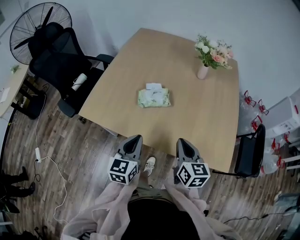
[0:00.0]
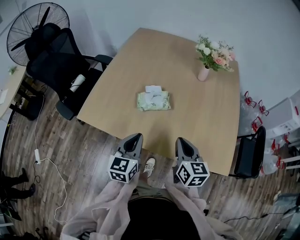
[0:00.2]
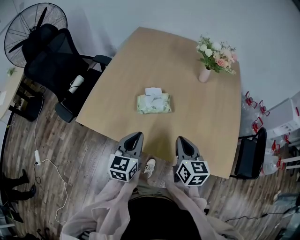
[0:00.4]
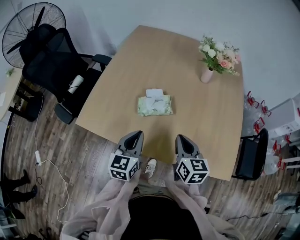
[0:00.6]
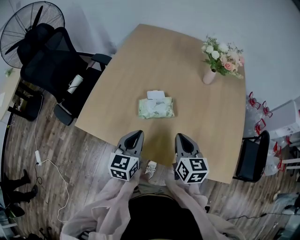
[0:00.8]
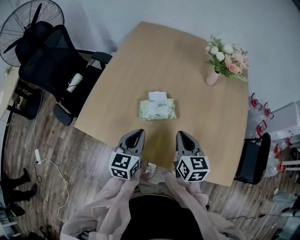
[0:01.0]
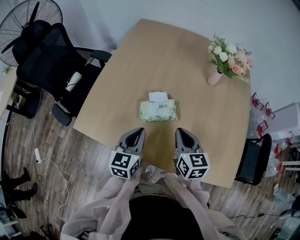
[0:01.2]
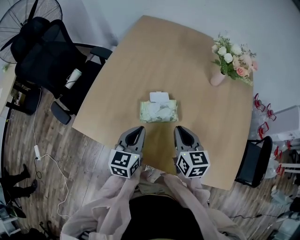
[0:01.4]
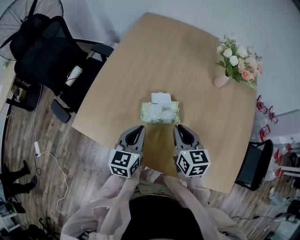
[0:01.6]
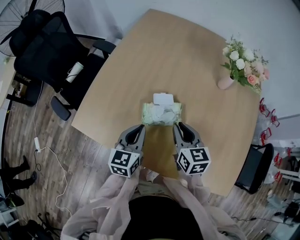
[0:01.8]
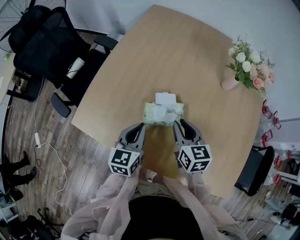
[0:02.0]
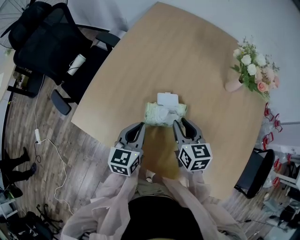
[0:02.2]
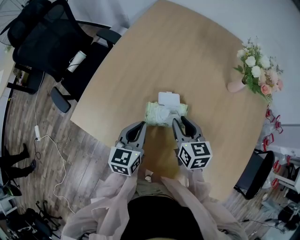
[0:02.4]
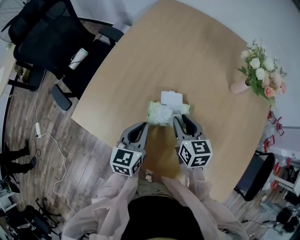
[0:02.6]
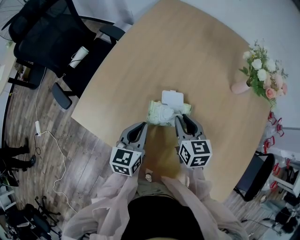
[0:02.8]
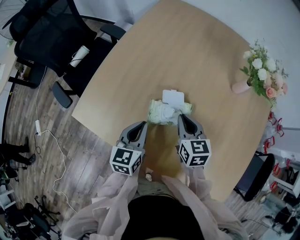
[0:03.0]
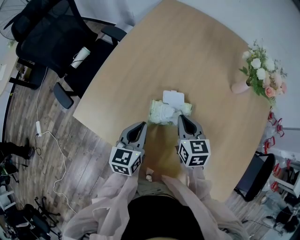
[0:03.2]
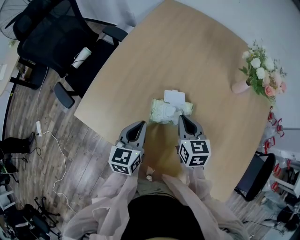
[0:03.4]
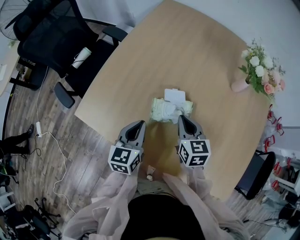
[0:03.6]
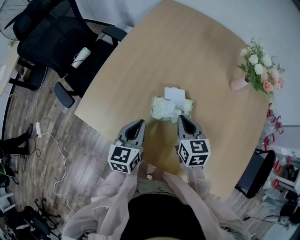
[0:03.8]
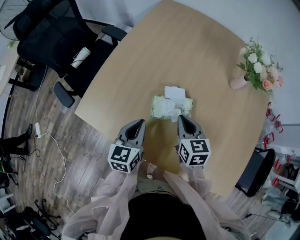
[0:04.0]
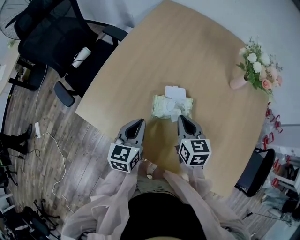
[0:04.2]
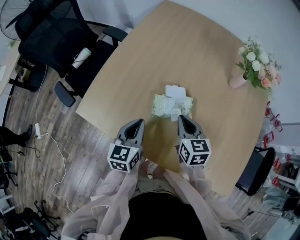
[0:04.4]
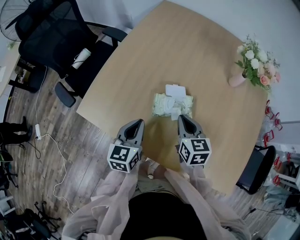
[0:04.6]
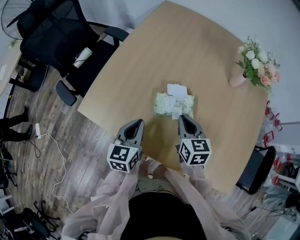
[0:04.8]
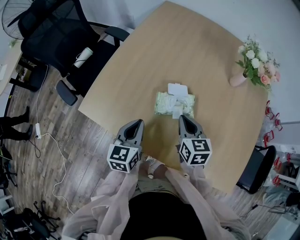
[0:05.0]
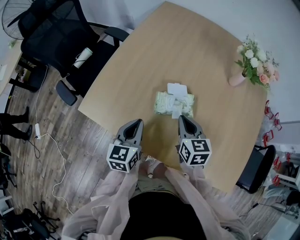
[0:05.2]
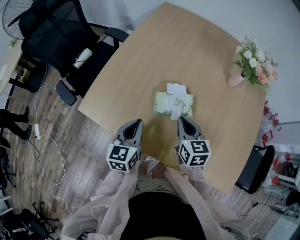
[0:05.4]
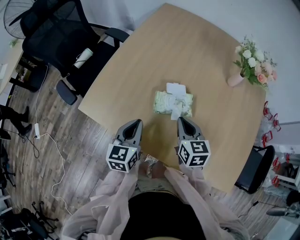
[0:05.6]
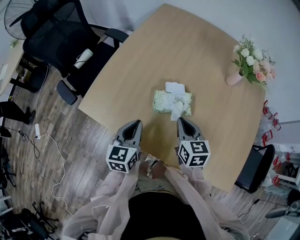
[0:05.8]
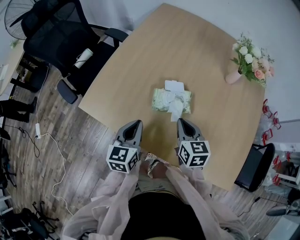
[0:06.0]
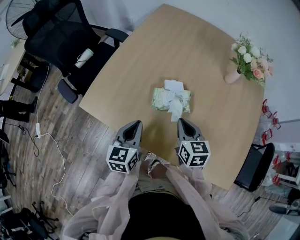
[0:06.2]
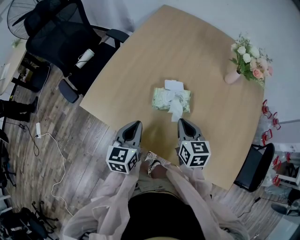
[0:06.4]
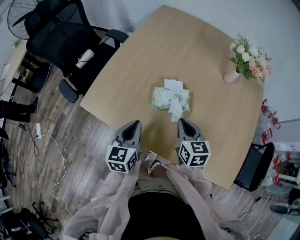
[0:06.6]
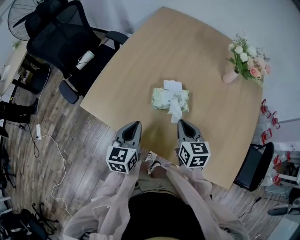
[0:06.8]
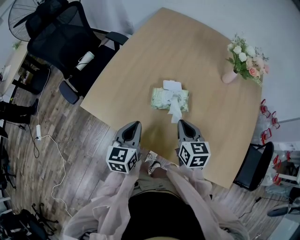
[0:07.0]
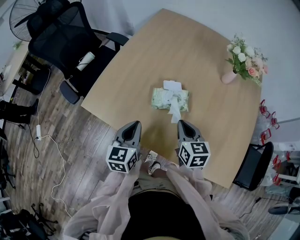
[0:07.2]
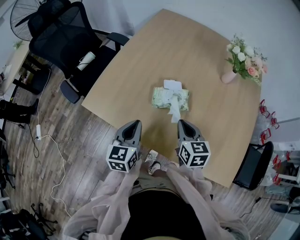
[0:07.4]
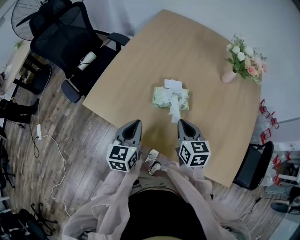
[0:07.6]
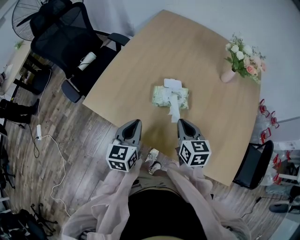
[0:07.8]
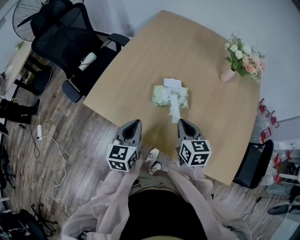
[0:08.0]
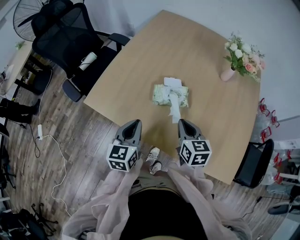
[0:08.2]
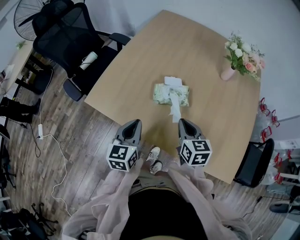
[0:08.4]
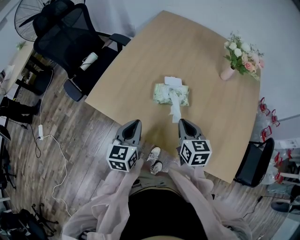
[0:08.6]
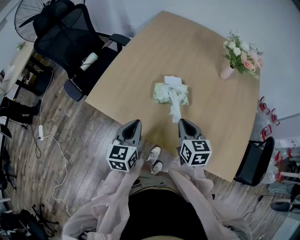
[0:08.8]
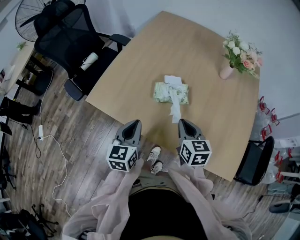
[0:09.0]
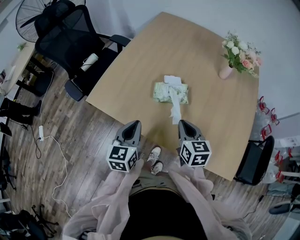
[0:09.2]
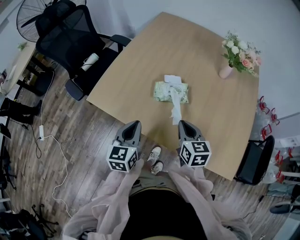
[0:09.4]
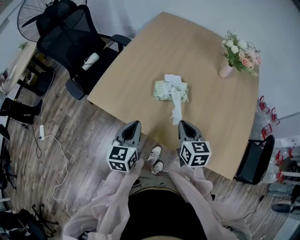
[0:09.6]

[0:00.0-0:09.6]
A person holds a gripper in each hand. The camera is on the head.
0.0 to 1.6 s: Both grippers move forward, some 20 cm.
1.6 to 3.2 s: The right gripper travels forward and downward by about 10 cm. The left gripper ends up about 5 cm from where it was.
3.2 to 4.8 s: The right gripper moves about 5 cm. Meanwhile the left gripper moves about 5 cm.
4.8 to 6.4 s: The right gripper moves roughly 5 cm.
6.4 to 8.0 s: The grippers stay close to where they were, moving slightly.
8.0 to 9.6 s: The grippers make only small movements.

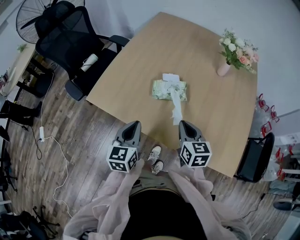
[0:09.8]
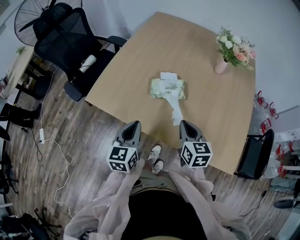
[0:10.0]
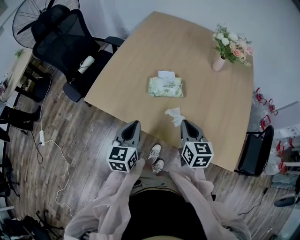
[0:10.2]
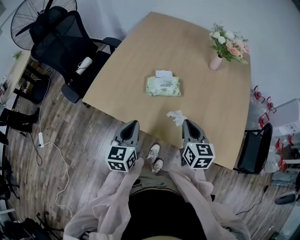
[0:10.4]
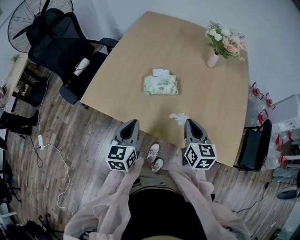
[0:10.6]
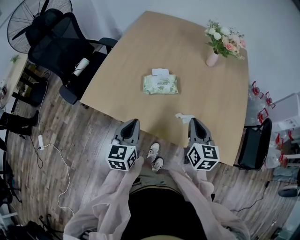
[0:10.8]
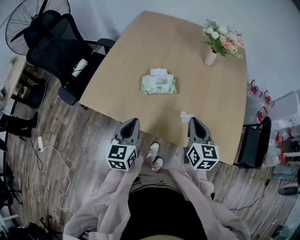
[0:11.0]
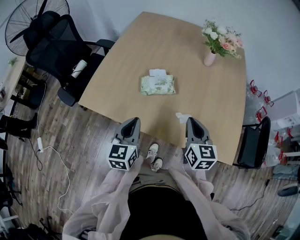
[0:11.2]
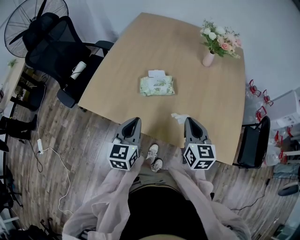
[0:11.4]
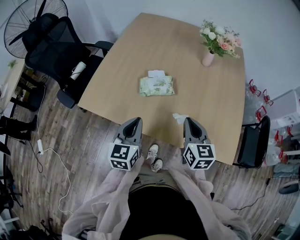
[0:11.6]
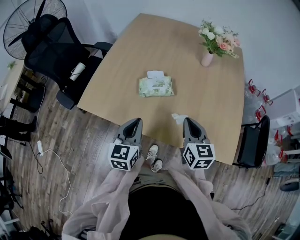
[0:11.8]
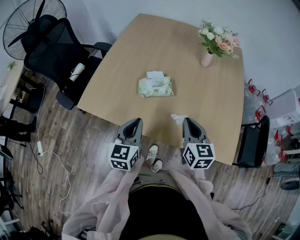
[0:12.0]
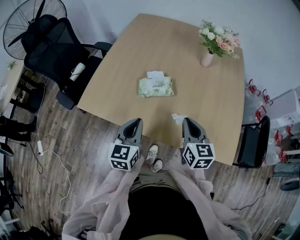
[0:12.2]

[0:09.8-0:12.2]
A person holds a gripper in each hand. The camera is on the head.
9.8 to 11.0 s: The right gripper shifts about 10 cm to the right.
11.0 to 12.2 s: The grippers make only small movements.

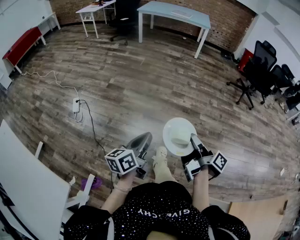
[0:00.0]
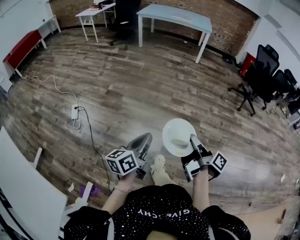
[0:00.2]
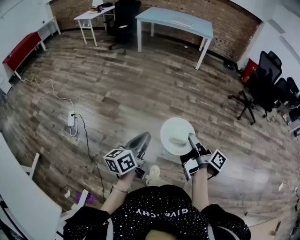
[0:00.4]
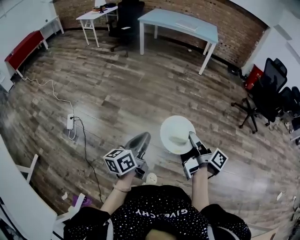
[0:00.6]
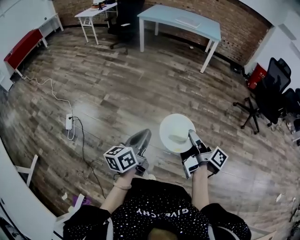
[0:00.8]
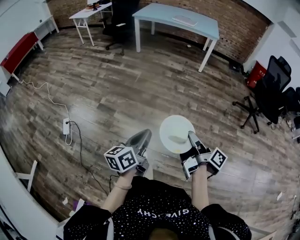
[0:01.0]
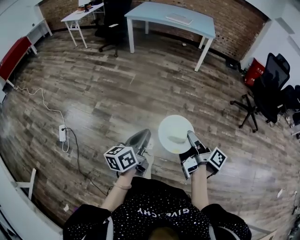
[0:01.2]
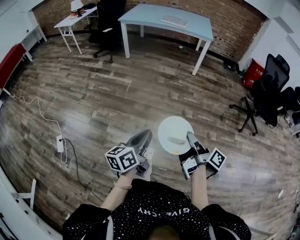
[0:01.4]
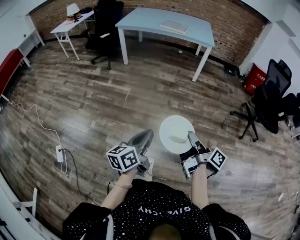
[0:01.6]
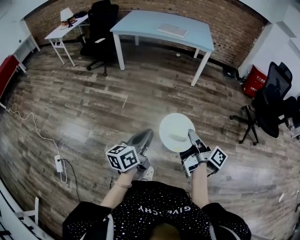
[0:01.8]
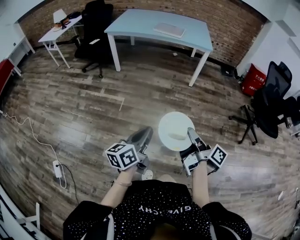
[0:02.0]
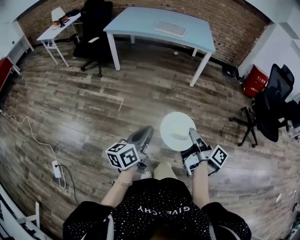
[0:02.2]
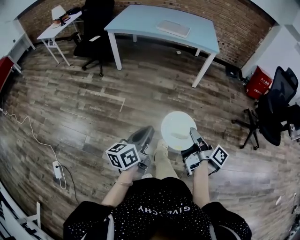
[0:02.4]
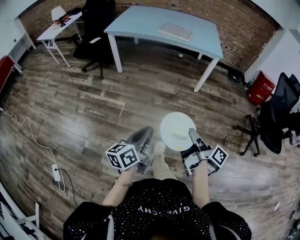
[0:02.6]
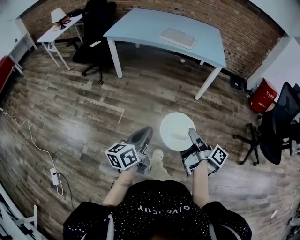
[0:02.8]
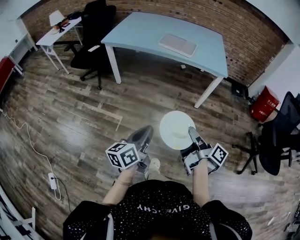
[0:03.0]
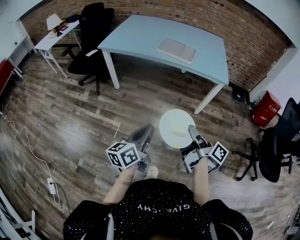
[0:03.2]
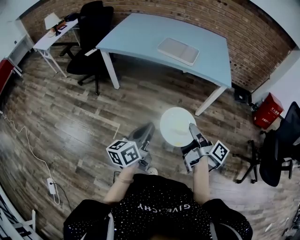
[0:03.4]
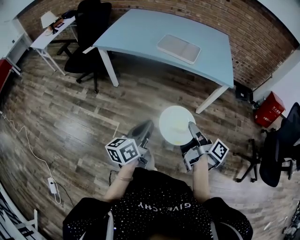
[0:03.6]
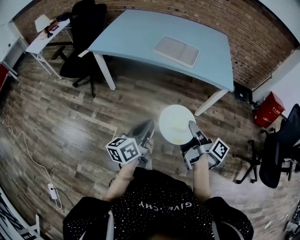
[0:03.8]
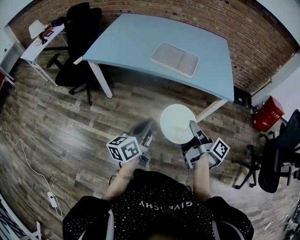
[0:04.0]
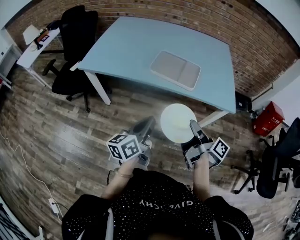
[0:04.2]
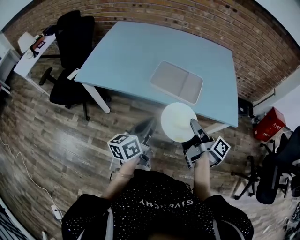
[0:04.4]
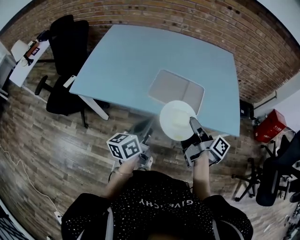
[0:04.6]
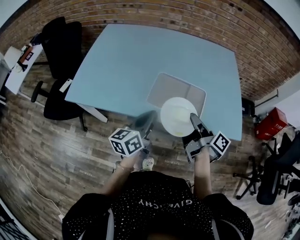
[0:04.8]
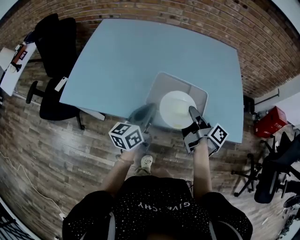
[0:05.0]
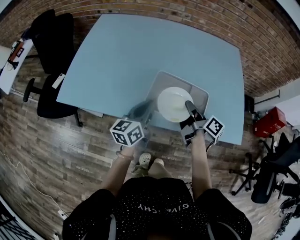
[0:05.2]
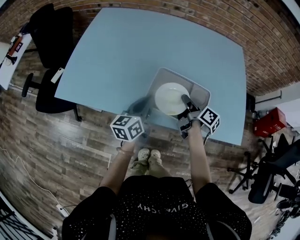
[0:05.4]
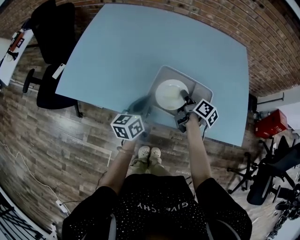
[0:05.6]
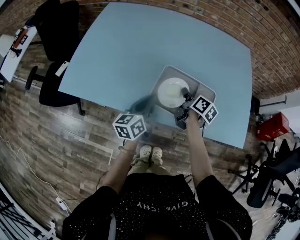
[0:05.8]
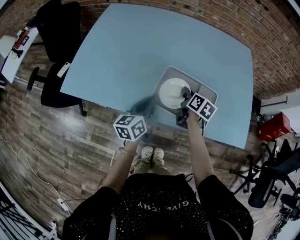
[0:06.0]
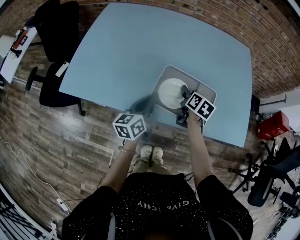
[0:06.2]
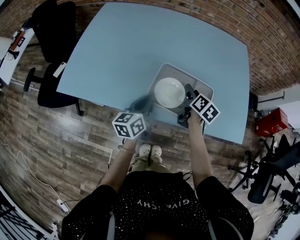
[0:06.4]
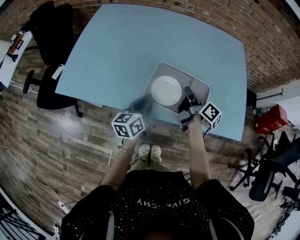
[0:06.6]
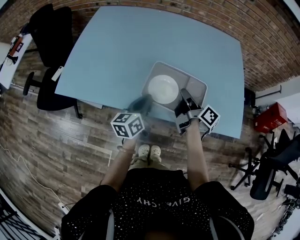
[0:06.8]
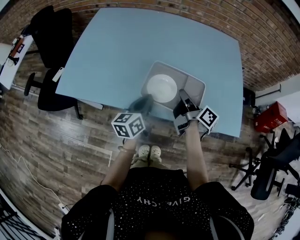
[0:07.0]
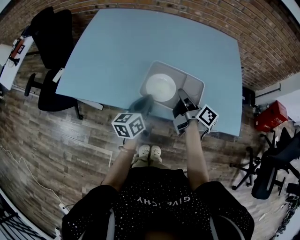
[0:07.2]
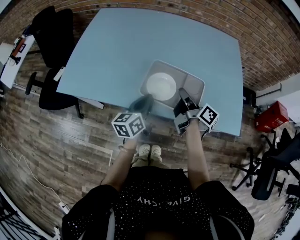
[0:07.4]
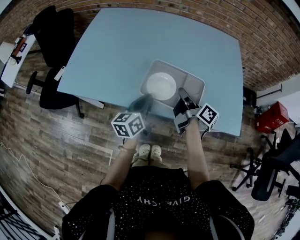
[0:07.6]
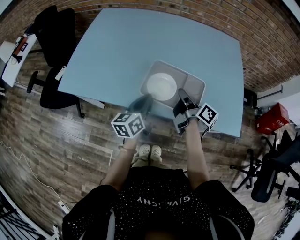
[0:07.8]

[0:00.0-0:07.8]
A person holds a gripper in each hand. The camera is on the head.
0.0 to 1.6 s: The left gripper ends up some 70 cm from where it was.
1.6 to 3.2 s: The left gripper moves roughly 60 cm.
3.2 to 4.6 s: The left gripper ends up some 60 cm from where it was.
4.6 to 6.2 s: The left gripper moves about 25 cm.
6.2 to 7.8 s: The left gripper ends up some 5 cm from where it was.

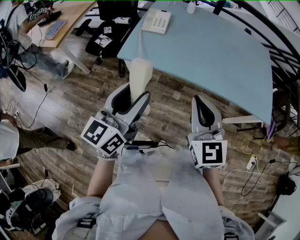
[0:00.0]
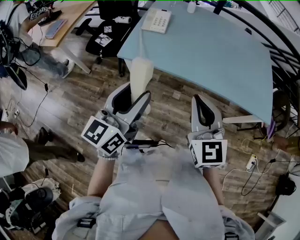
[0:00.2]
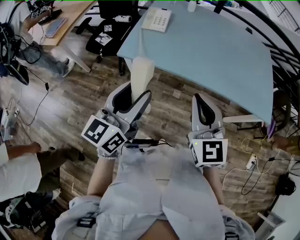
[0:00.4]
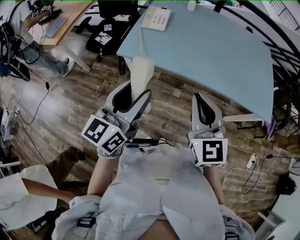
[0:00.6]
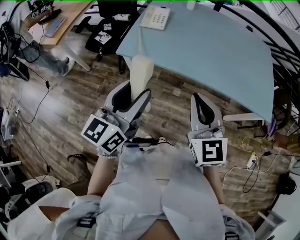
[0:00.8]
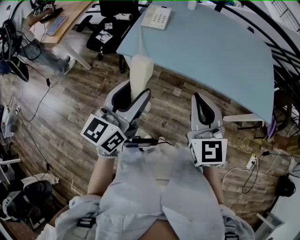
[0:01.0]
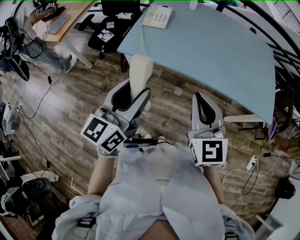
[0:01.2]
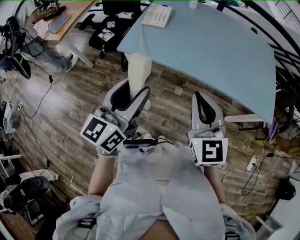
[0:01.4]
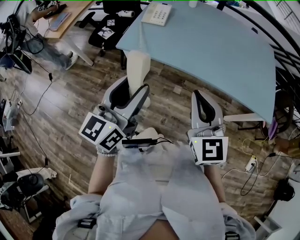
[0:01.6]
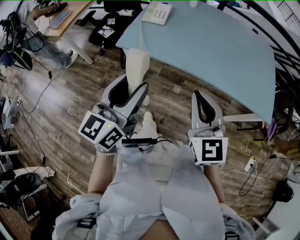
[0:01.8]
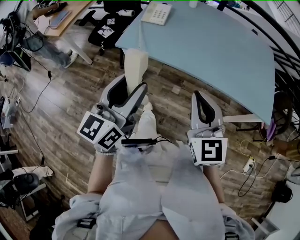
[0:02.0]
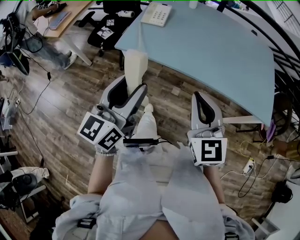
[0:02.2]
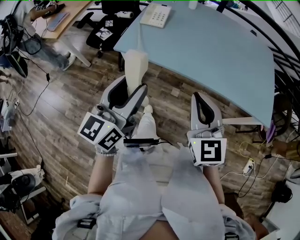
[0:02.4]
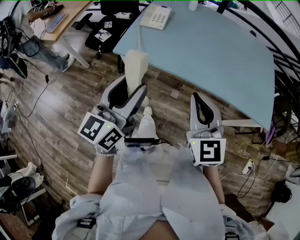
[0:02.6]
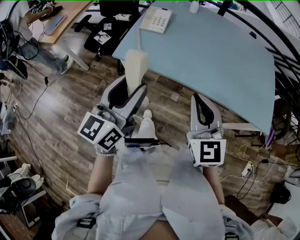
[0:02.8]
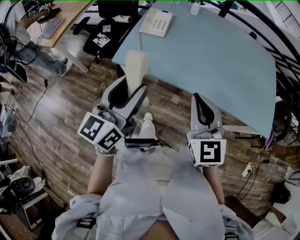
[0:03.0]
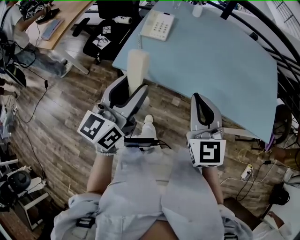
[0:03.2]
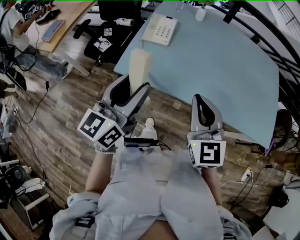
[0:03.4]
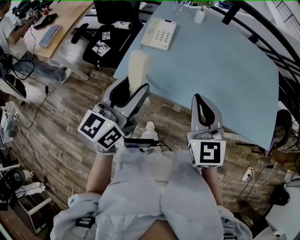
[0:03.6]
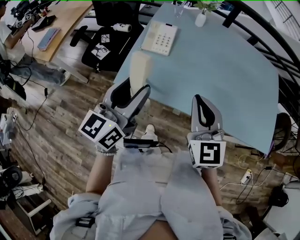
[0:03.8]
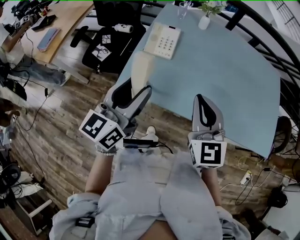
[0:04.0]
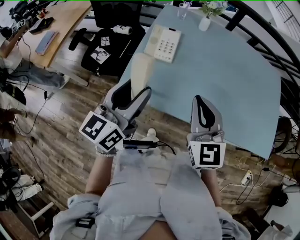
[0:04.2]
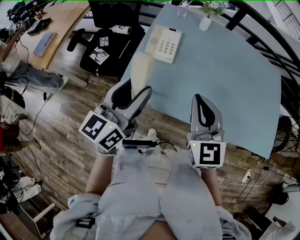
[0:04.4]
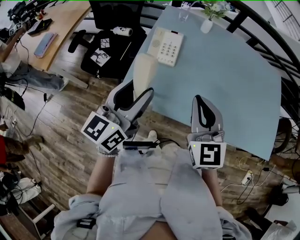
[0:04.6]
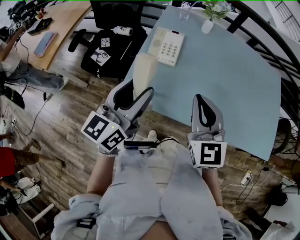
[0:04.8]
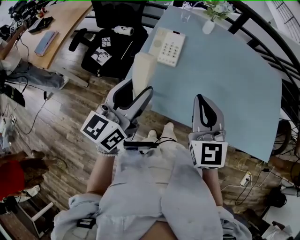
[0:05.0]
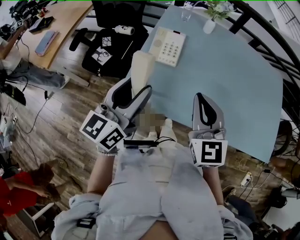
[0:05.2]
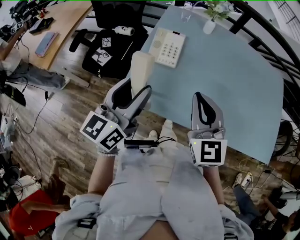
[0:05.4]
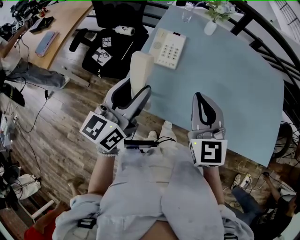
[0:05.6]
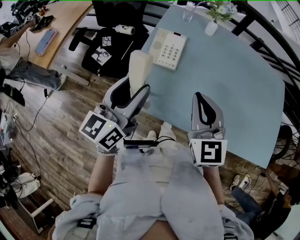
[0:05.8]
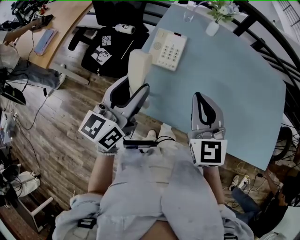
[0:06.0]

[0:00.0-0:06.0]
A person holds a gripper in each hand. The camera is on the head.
0.0 to 1.6 s: The left gripper shifts by some 5 cm.
1.6 to 3.0 s: Both grippers move forward, roughly 10 cm.
3.0 to 4.4 s: The right gripper heads forward and to the left, covering approximately 20 cm. The left gripper moves forward, about 20 cm.
4.4 to 6.0 s: The grippers both shift forward by about 5 cm.
